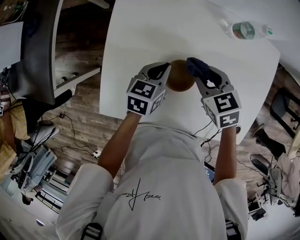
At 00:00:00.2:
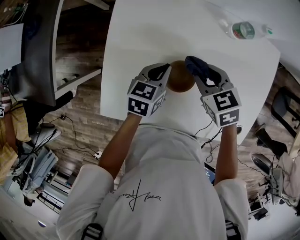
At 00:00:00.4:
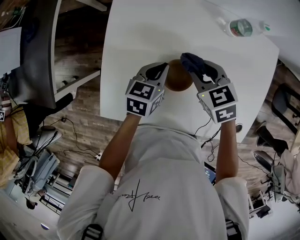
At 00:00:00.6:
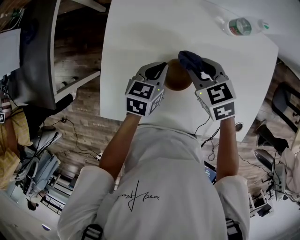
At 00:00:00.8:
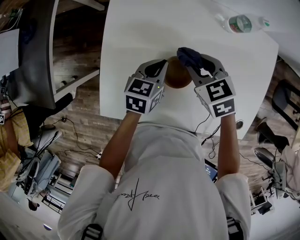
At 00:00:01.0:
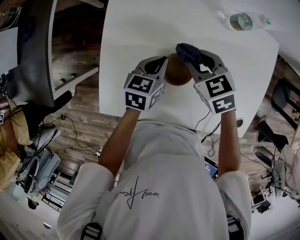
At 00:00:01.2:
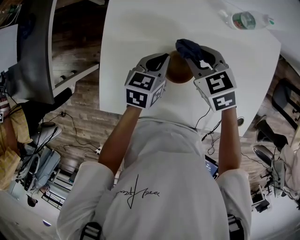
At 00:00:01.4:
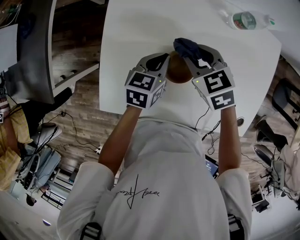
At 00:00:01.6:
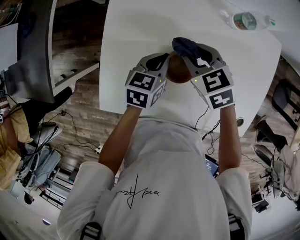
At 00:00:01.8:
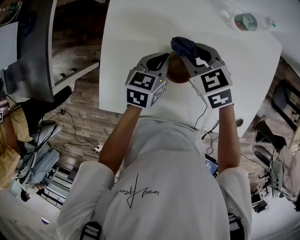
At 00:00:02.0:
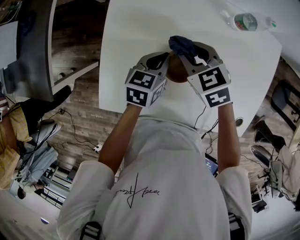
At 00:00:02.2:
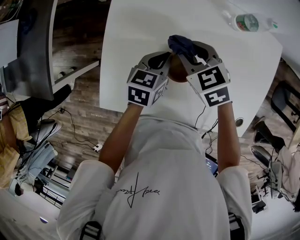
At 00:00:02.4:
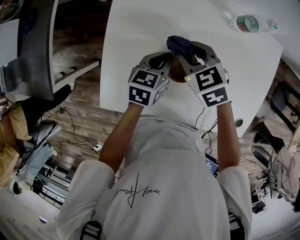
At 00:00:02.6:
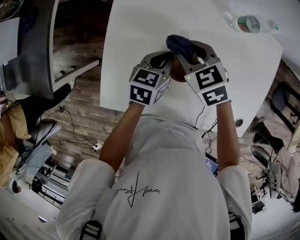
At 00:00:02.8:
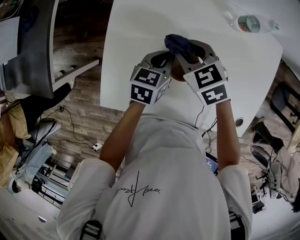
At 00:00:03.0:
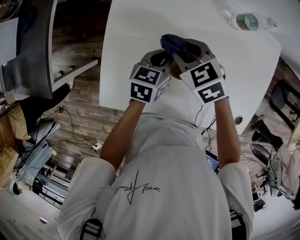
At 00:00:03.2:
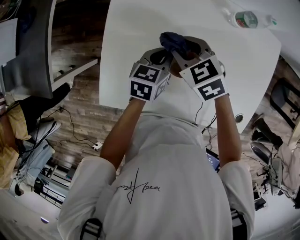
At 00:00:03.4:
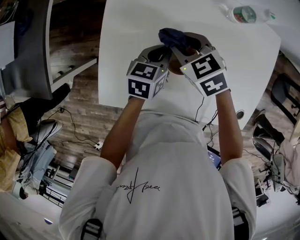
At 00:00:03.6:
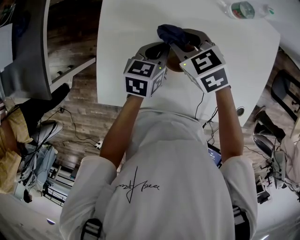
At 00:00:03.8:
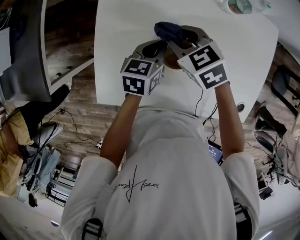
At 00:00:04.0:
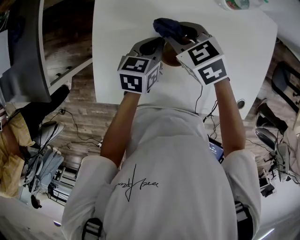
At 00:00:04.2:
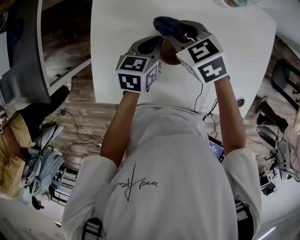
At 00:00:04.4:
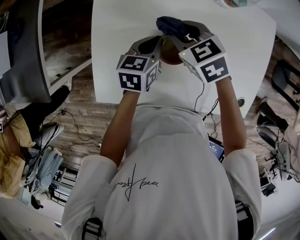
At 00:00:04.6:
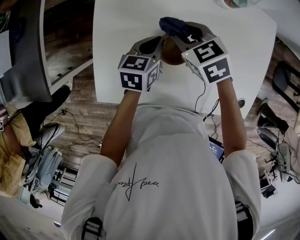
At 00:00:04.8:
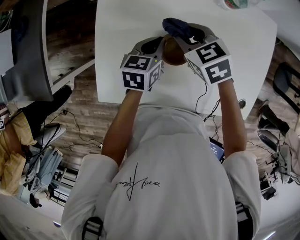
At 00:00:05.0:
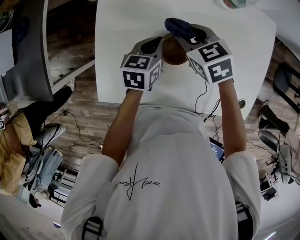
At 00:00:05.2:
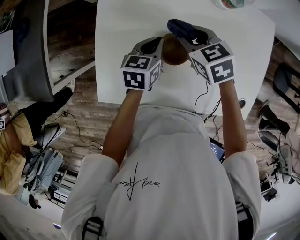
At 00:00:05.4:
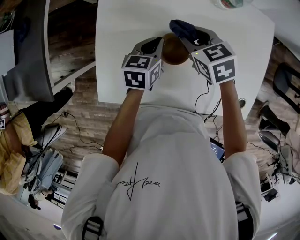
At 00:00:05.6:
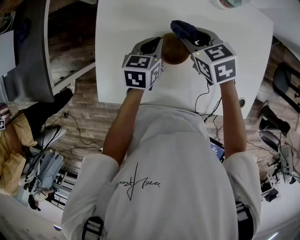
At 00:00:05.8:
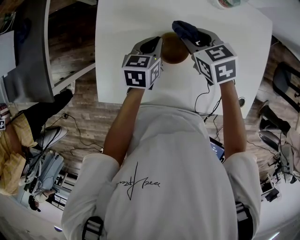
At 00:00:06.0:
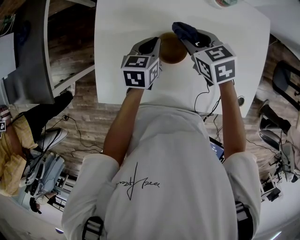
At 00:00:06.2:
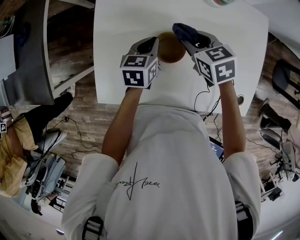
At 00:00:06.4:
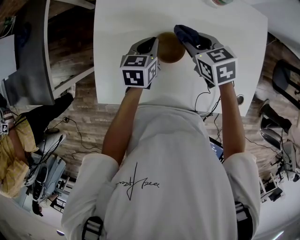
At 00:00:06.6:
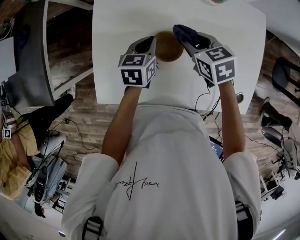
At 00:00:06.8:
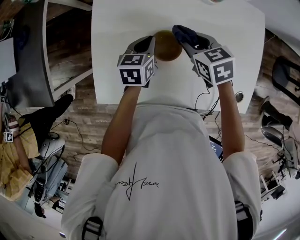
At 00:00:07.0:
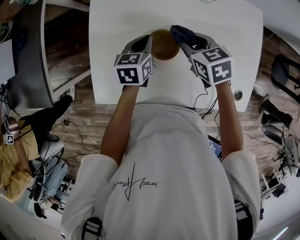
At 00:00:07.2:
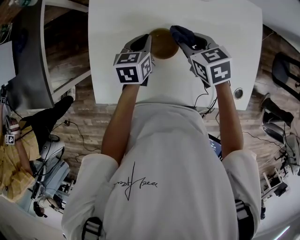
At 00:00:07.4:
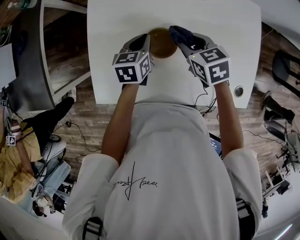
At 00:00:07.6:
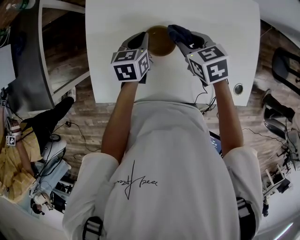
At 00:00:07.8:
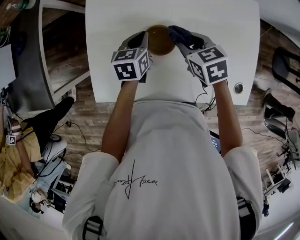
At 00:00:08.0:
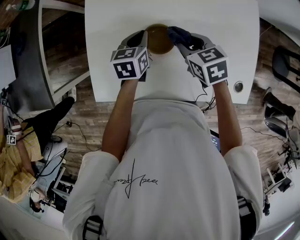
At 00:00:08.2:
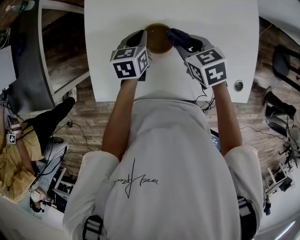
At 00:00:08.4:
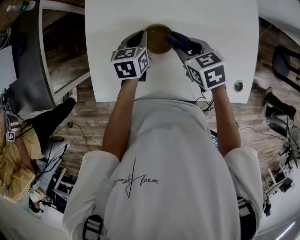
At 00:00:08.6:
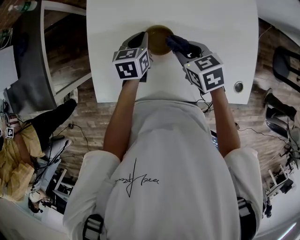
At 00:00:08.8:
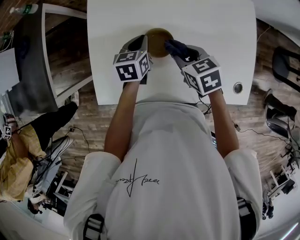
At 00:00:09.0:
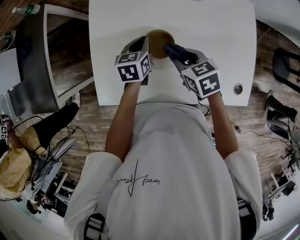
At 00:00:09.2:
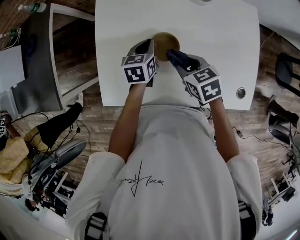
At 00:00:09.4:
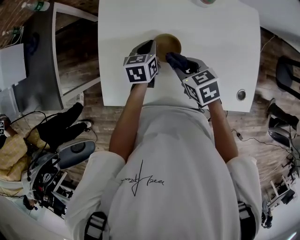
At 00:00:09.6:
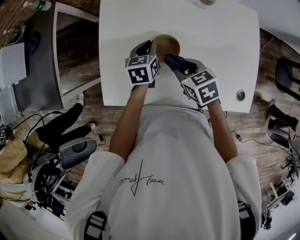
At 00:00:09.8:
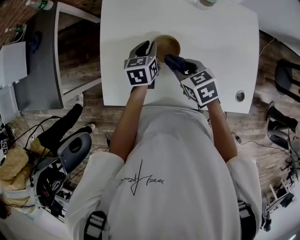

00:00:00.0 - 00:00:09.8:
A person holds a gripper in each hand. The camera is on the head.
00:00:00.0 - 00:00:01.4: The right gripper ends up roughly 5 cm from where it was.
00:00:01.4 - 00:00:02.8: There are only small adjustments of the grippers.
00:00:02.8 - 00:00:04.2: The two grippers keep their place.
00:00:04.2 - 00:00:05.6: The right gripper travels to the right by about 5 cm.
00:00:05.6 - 00:00:07.0: The grippers stay close to where they were, moving slightly.
00:00:07.0 - 00:00:08.4: The grippers make only small movements.
00:00:08.4 - 00:00:09.8: The right gripper moves about 5 cm.

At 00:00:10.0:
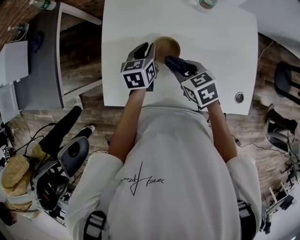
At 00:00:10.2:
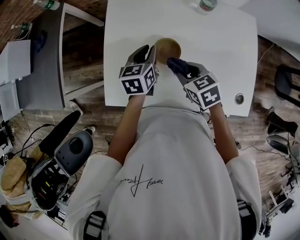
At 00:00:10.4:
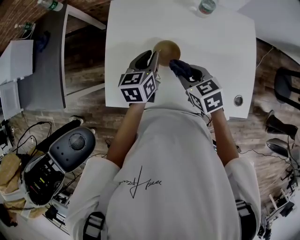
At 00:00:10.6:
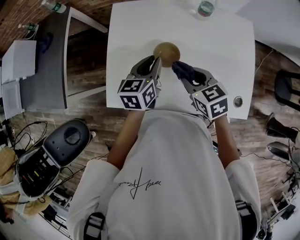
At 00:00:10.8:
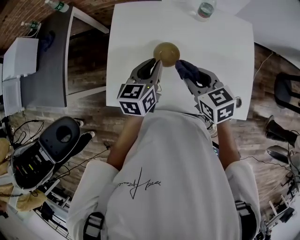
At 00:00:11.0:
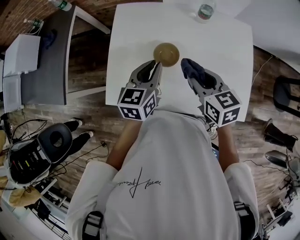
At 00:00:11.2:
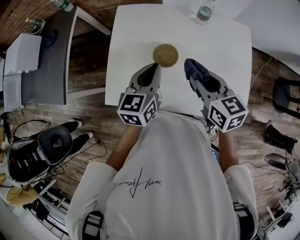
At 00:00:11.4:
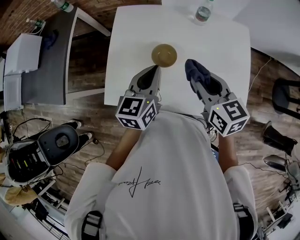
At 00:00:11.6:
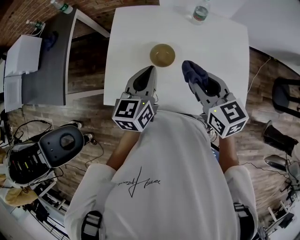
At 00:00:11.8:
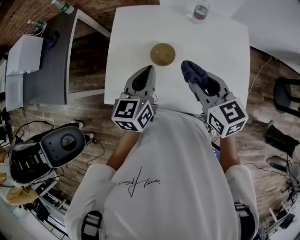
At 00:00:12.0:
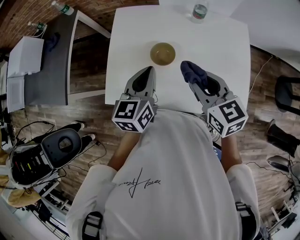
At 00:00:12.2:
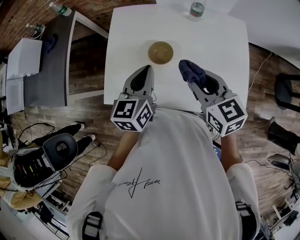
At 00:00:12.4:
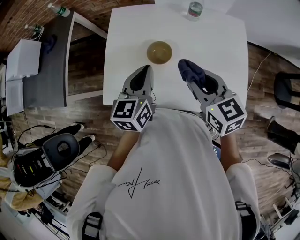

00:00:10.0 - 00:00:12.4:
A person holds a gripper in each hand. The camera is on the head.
00:00:10.0 - 00:00:11.2: The right gripper moves upward and to the right, some 15 cm, and rotates roughly 20 degrees, while the left gripper heads upward and backward, covering about 20 cm, and closes up.
00:00:11.2 - 00:00:12.4: The grippers stay close to where they were, moving slightly.

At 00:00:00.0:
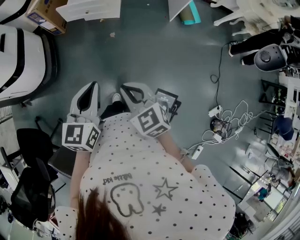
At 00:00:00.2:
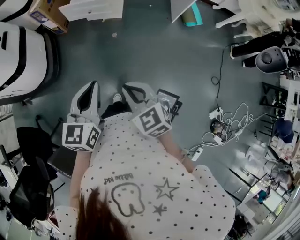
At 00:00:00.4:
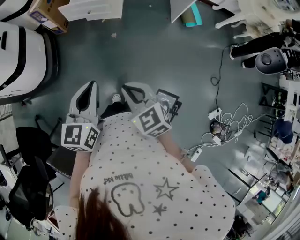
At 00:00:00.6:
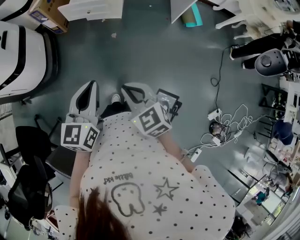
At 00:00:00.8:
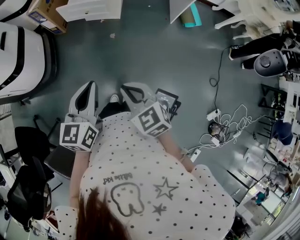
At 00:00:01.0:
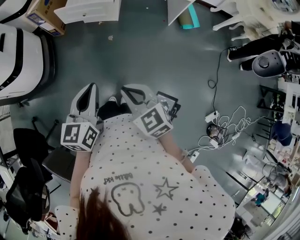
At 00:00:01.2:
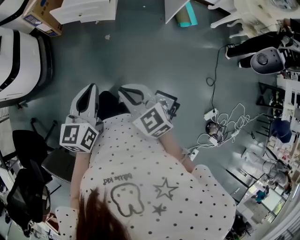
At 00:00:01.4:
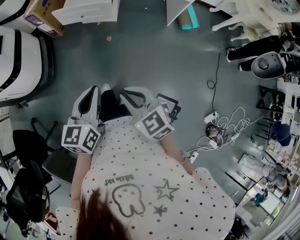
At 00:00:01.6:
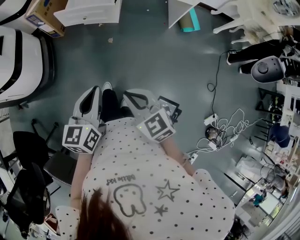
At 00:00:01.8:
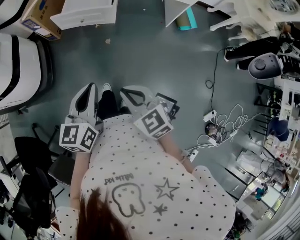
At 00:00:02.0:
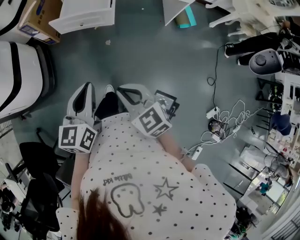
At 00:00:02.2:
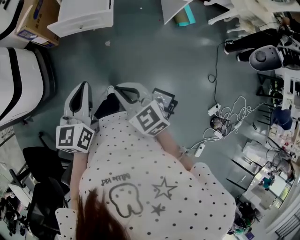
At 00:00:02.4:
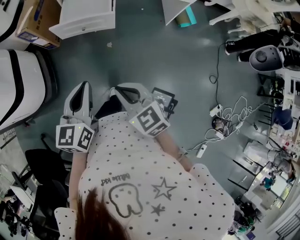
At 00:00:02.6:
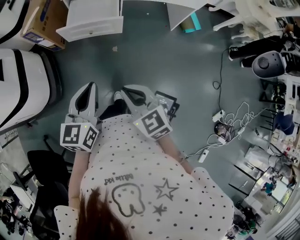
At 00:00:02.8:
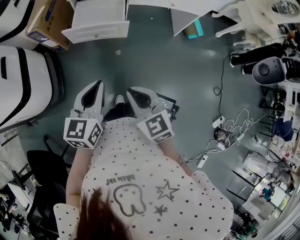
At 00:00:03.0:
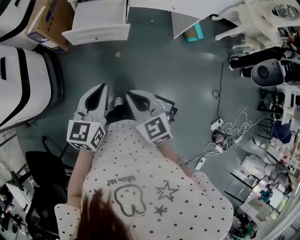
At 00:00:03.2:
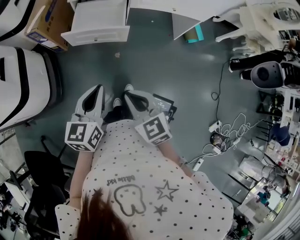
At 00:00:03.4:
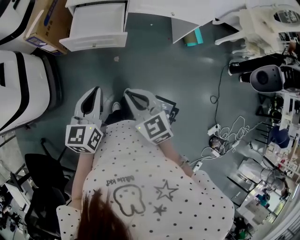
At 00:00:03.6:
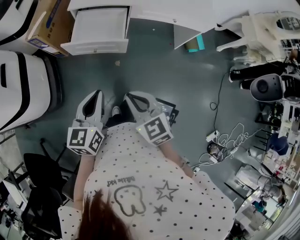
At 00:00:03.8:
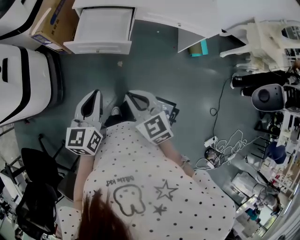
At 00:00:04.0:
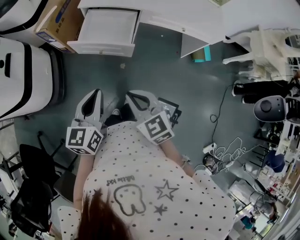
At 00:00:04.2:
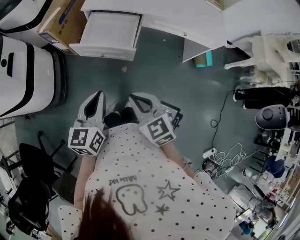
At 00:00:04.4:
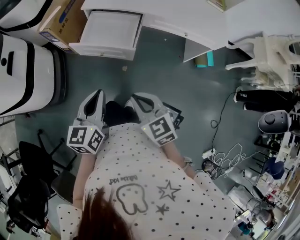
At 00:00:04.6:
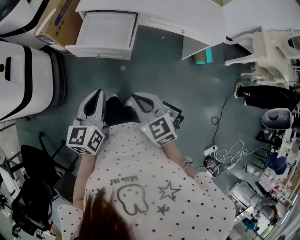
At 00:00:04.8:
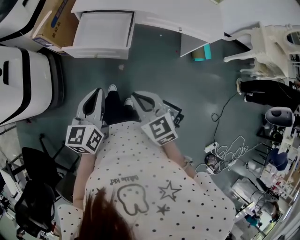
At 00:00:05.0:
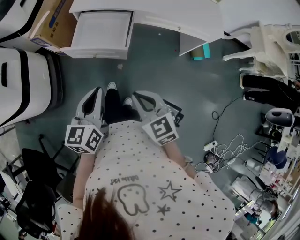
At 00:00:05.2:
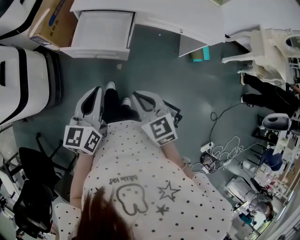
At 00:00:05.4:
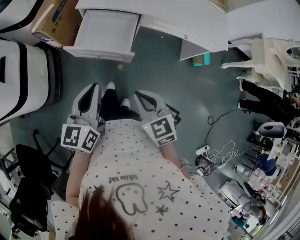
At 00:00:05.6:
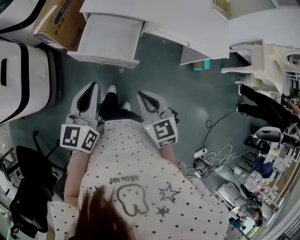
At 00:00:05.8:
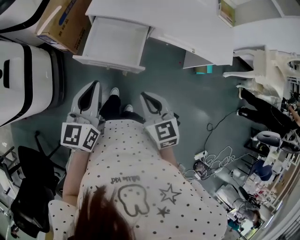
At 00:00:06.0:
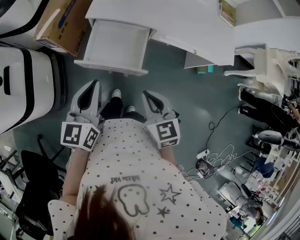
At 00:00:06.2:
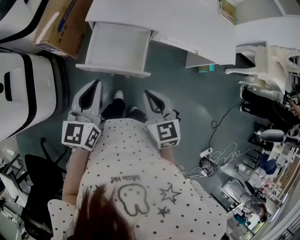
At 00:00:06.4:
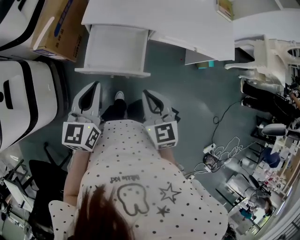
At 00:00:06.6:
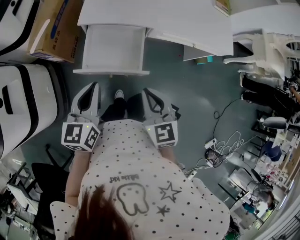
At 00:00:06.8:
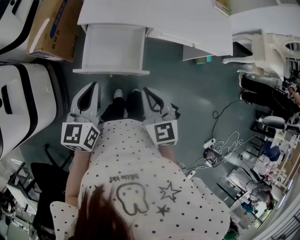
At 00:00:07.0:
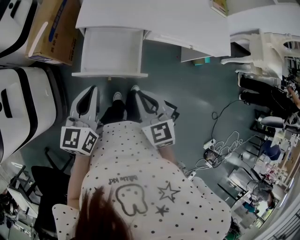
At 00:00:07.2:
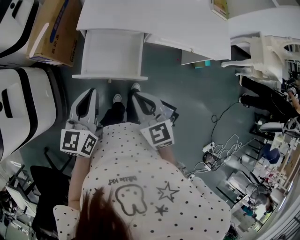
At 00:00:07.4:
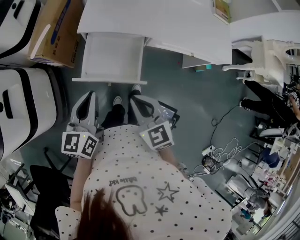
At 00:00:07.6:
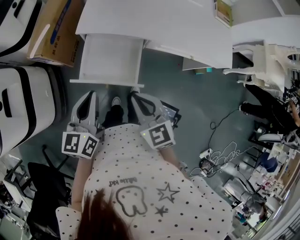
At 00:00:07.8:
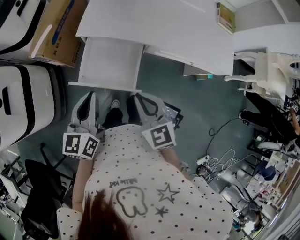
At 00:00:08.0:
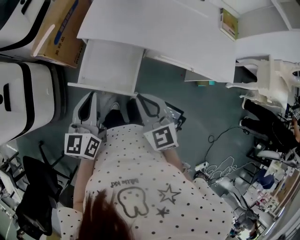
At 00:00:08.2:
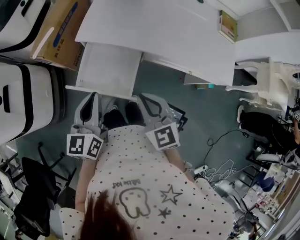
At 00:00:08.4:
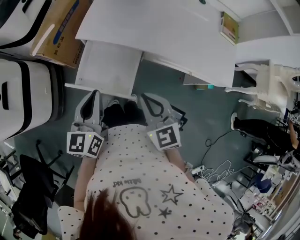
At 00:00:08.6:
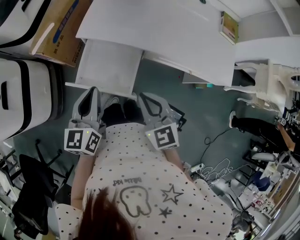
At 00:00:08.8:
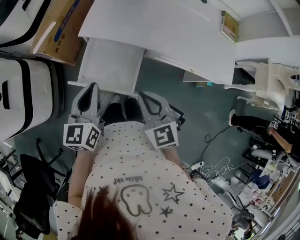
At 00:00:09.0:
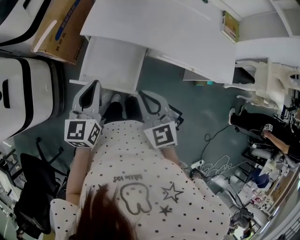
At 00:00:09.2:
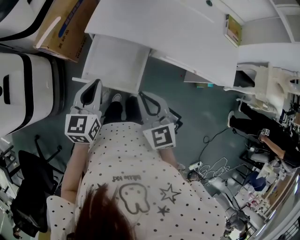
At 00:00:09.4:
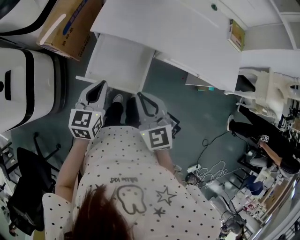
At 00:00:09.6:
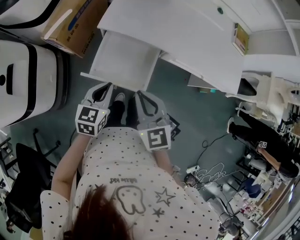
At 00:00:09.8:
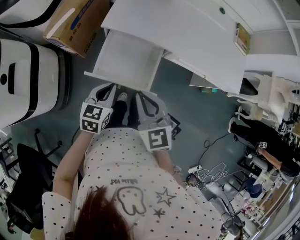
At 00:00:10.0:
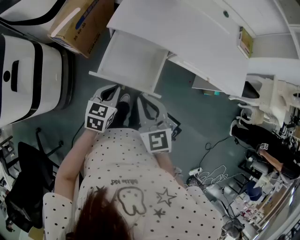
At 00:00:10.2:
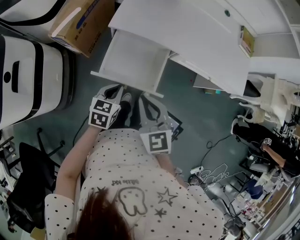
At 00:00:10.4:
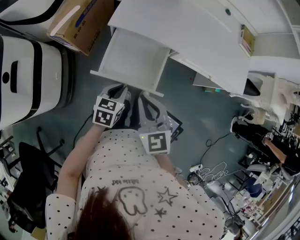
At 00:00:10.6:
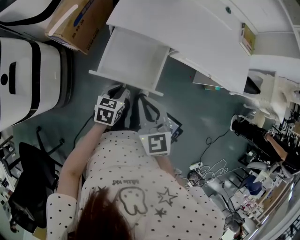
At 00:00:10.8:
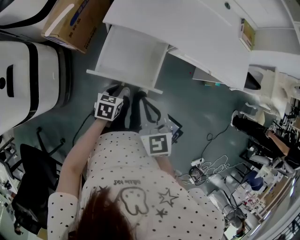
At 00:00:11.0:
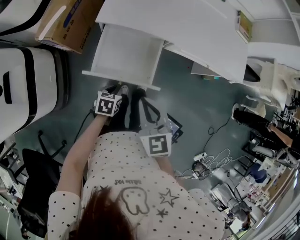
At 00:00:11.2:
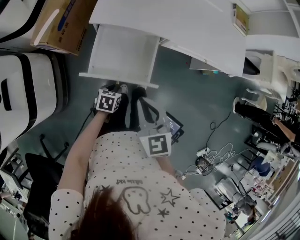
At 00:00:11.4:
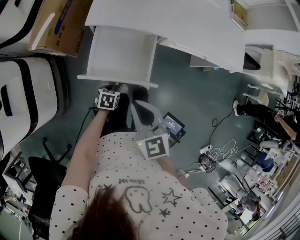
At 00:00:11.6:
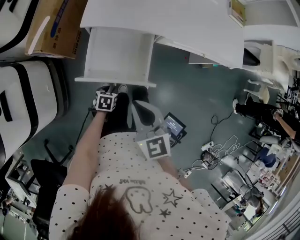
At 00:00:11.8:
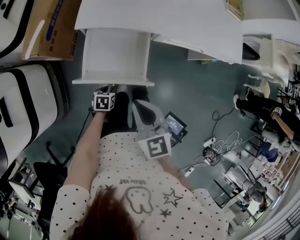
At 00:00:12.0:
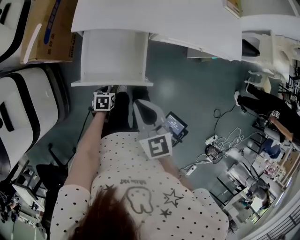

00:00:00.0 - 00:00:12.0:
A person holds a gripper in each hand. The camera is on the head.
00:00:00.0 - 00:00:01.6: The right gripper moves about 5 cm. Meanwhile the left gripper changes place by roughly 5 cm.
00:00:01.6 - 00:00:03.0: The left gripper moves forward, about 15 cm. The right gripper heads forward and to the left, covering about 15 cm.
00:00:03.0 - 00:00:04.4: The right gripper is displaced forward and to the right by roughly 15 cm; the left gripper shifts about 10 cm forward.
00:00:04.4 - 00:00:06.0: Both grippers move forward, approximately 15 cm.
00:00:06.0 - 00:00:07.6: The two grippers go some 5 cm forward.
00:00:07.6 - 00:00:09.0: The left gripper shifts by roughly 5 cm.
00:00:09.0 - 00:00:10.4: The left gripper is displaced downward by roughly 15 cm, and rotates approximately 30 degrees; the right gripper heads to the left, covering some 10 cm.
00:00:10.4 - 00:00:12.0: The left gripper is displaced downward by some 20 cm, and rotates approximately 20 degrees.
